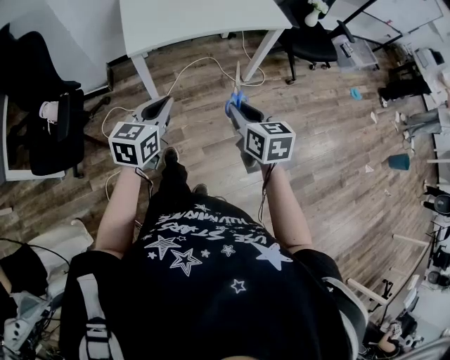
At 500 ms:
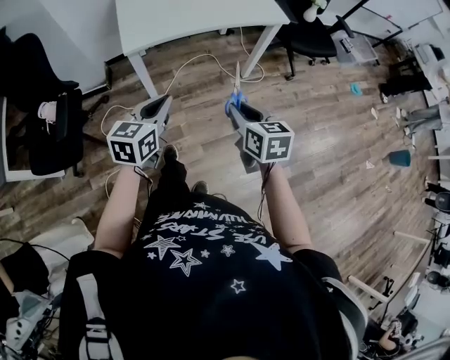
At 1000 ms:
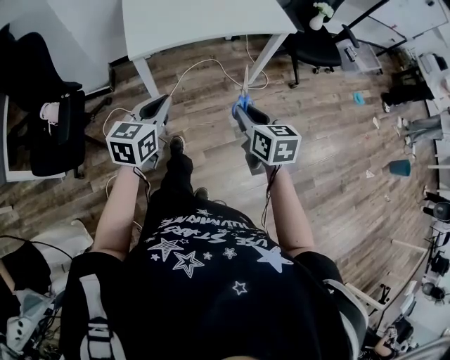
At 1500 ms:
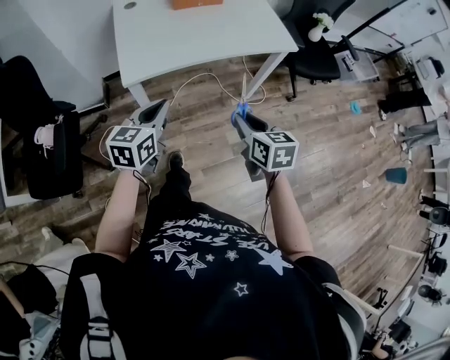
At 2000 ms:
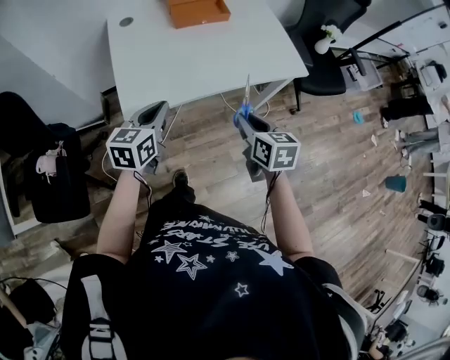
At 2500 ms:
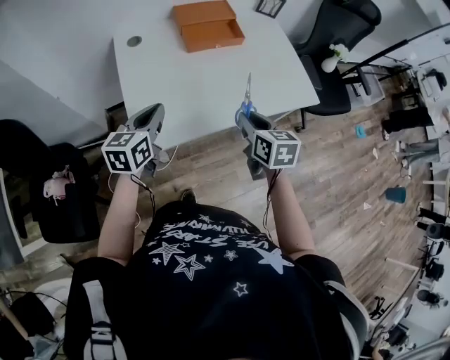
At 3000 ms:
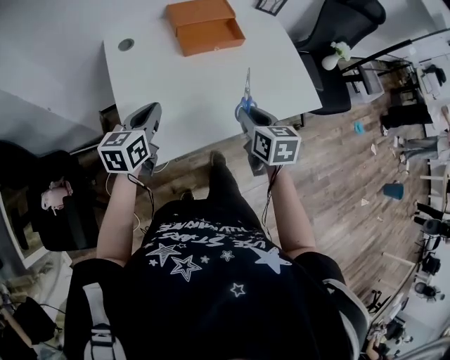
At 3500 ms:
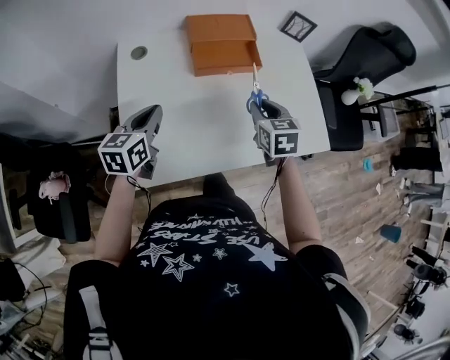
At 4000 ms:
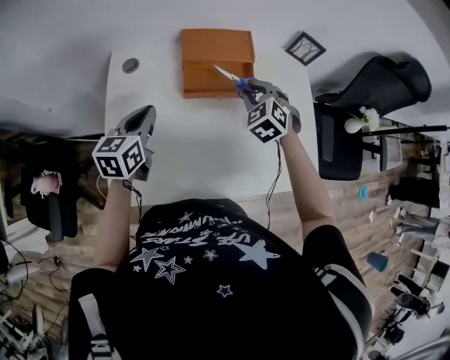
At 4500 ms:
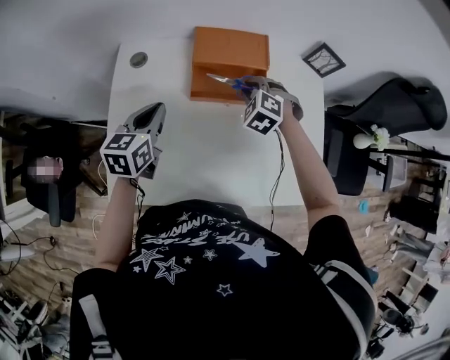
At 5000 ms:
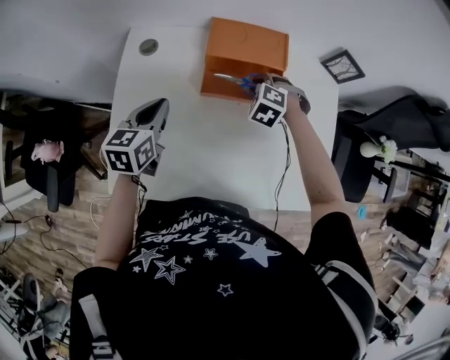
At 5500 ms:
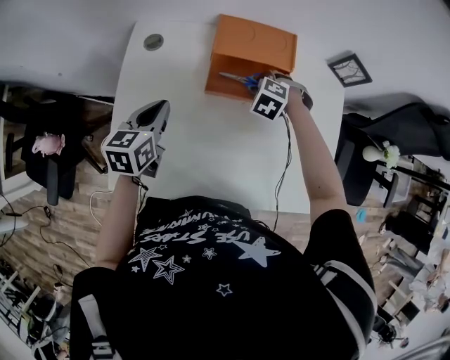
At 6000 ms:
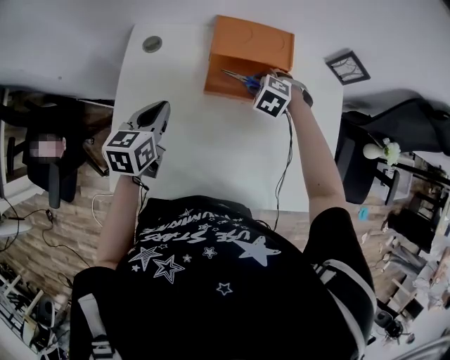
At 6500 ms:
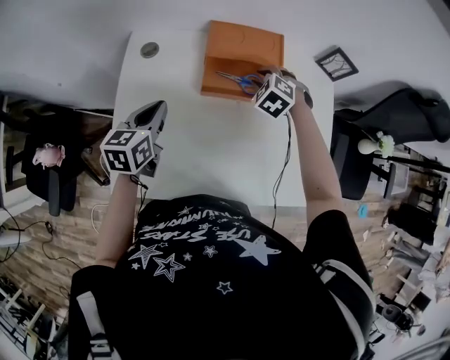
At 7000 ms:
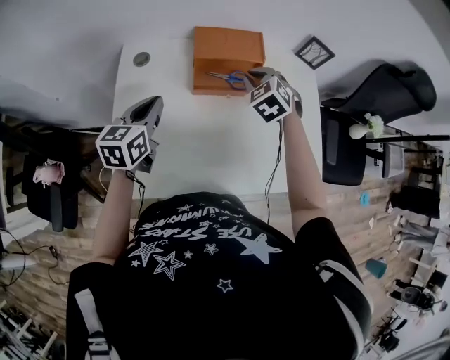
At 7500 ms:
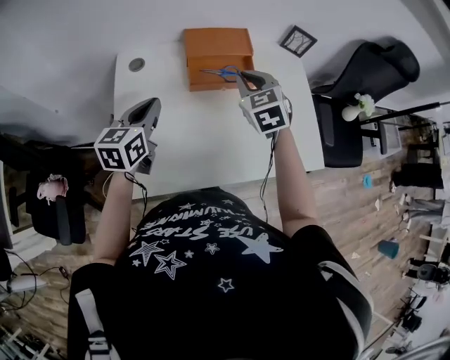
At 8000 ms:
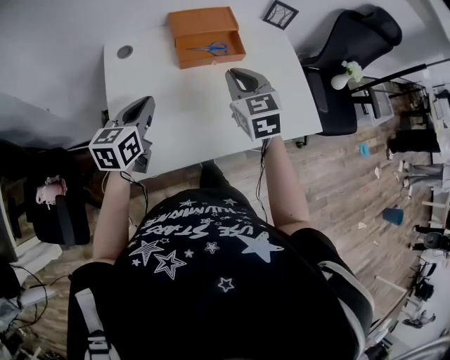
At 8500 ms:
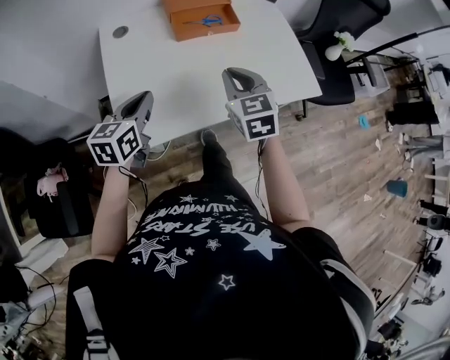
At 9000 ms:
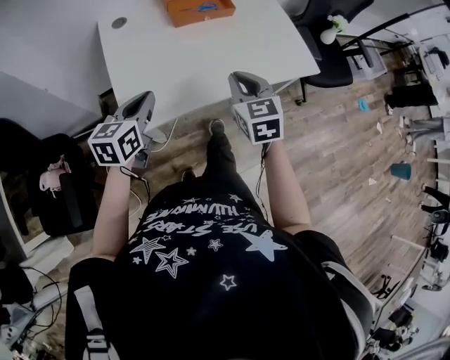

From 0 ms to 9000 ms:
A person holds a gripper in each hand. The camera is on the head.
From 0 ms to 2000 ms: The two grippers go about 35 cm forward.
From 2000 ms to 4500 ms: The pair of grippers is taken forward, approximately 50 cm. The left gripper swivels approximately 20 degrees; the right gripper rotates around the line of its fingers by approximately 80 degrees, counterclockwise from behind.
From 4500 ms to 7000 ms: The left gripper changes place by roughly 5 cm. Meanwhile the right gripper shifts roughly 10 cm upward, and changes its angle by approximately 20 degrees.
From 7000 ms to 9000 ms: Both grippers move backward, roughly 35 cm. The right gripper swivels roughly 40 degrees.

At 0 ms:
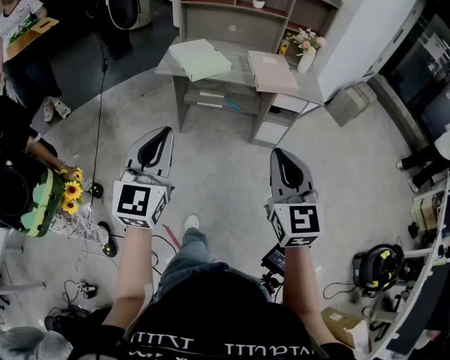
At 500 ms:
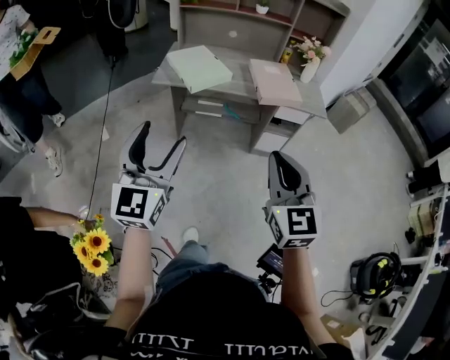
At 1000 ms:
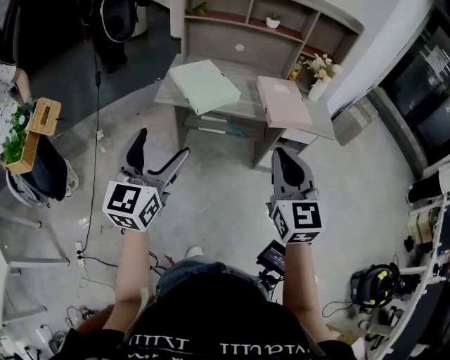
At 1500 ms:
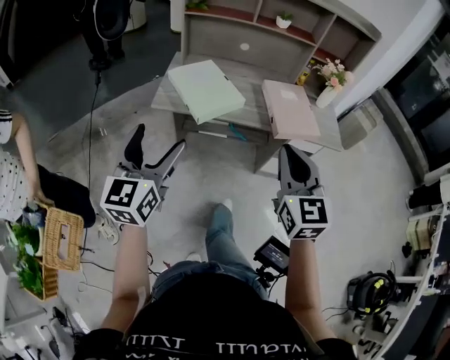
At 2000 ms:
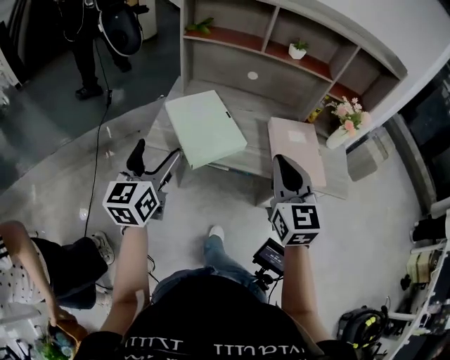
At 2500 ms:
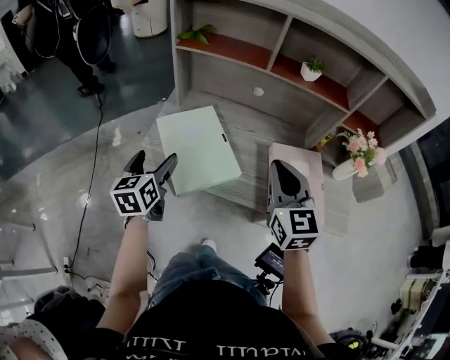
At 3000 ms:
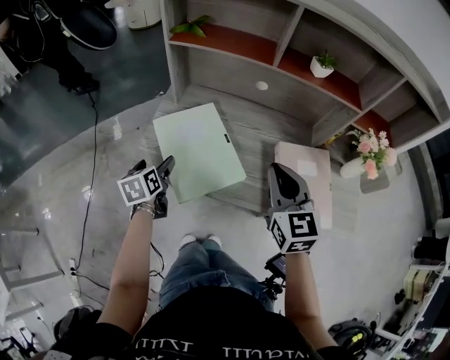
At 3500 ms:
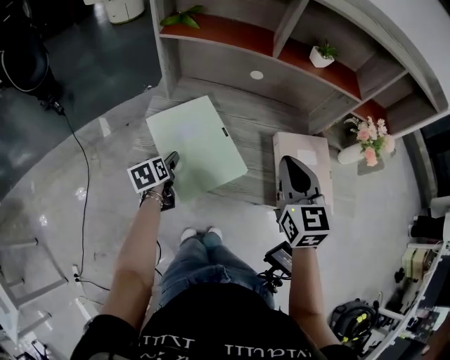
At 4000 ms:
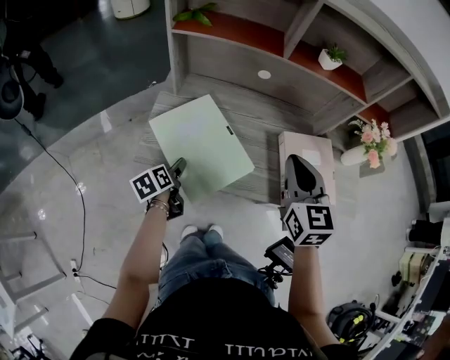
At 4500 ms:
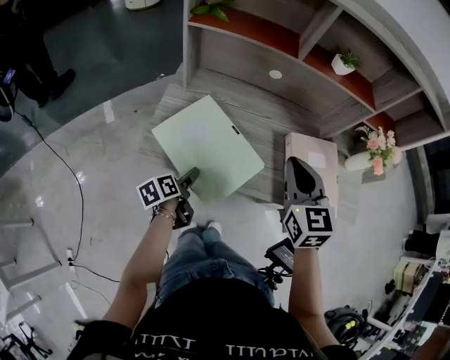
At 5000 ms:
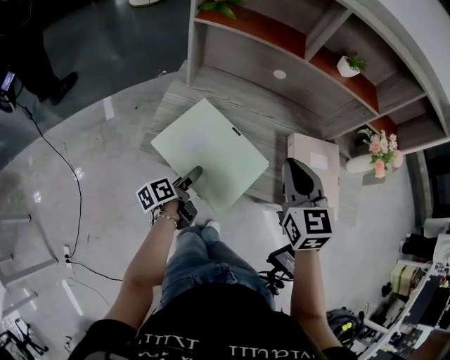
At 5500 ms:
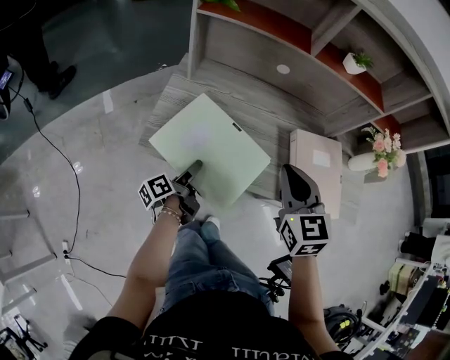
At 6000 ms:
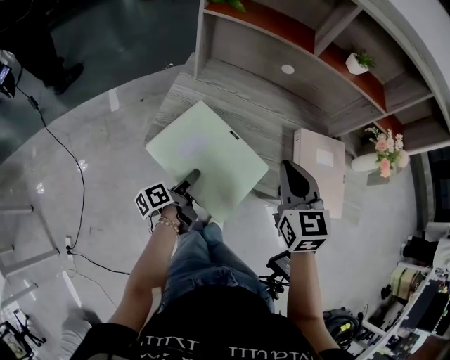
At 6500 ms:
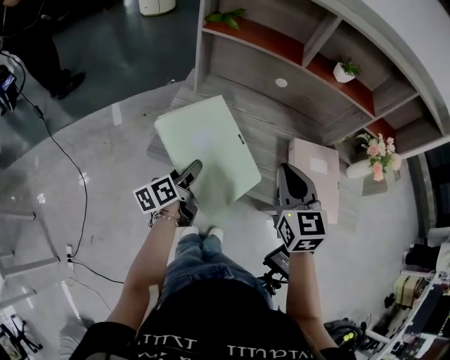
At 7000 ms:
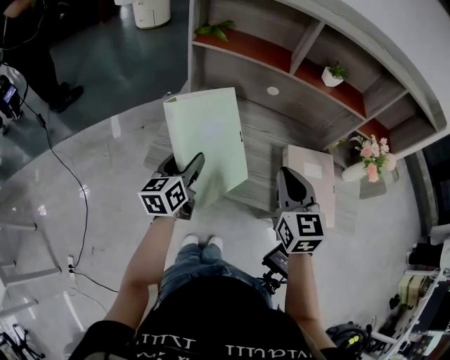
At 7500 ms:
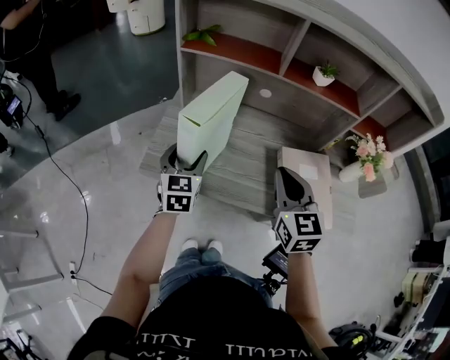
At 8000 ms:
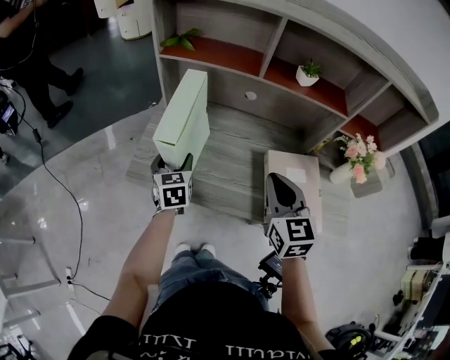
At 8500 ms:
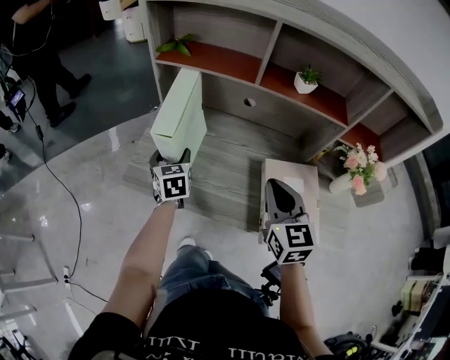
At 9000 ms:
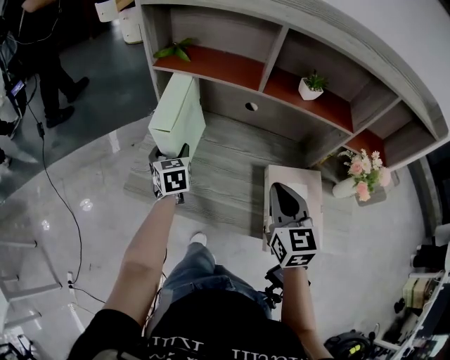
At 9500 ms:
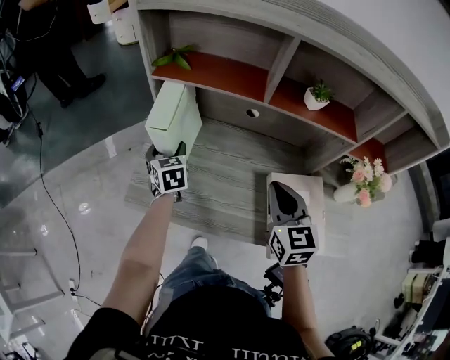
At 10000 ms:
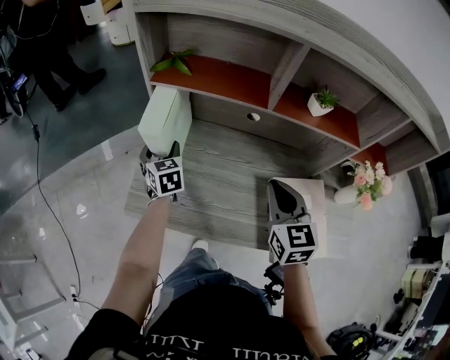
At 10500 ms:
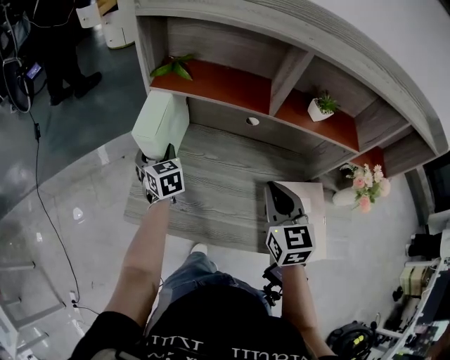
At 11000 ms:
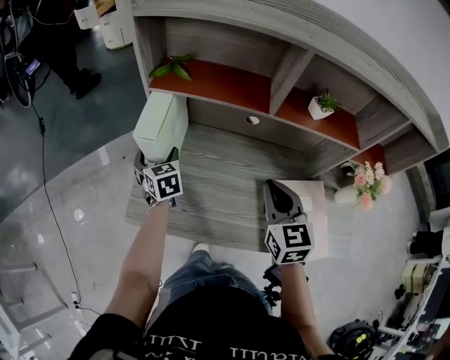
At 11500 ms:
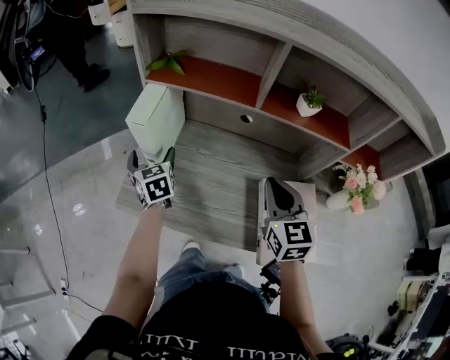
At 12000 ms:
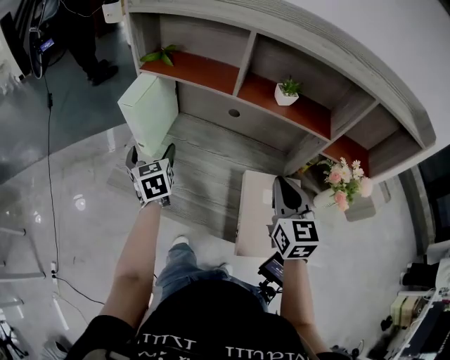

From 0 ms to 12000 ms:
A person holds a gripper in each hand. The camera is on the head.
From 0 ms to 2000 ms: The two grippers travel together, forward, approximately 50 cm. The left gripper turns by some 20 degrees, and opens.
From 2000 ms to 4000 ms: The right gripper moves forward, about 20 cm, while the left gripper is displaced downward and forward by about 35 cm, and points its fingers roughly 40 degrees further downward.
From 4000 ms to 6000 ms: The left gripper heads backward, covering roughly 10 cm, and rotates about 40 degrees; the right gripper heads to the left, covering about 5 cm.
From 6000 ms to 8000 ms: The right gripper shifts some 10 cm to the right. Meanwhile the left gripper travels forward and upward by roughly 20 cm, and rotates around the line of its fingers by about 70 degrees, clockwise from behind.
From 8000 ms to 10000 ms: The left gripper goes approximately 15 cm forward, while the right gripper shifts about 10 cm forward.
From 10000 ms to 12000 ms: The right gripper heads to the right and backward, covering some 15 cm; the left gripper shifts some 15 cm backward and upward.

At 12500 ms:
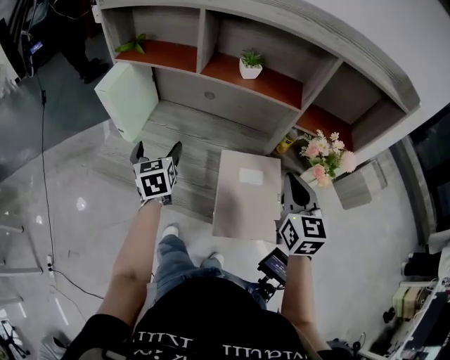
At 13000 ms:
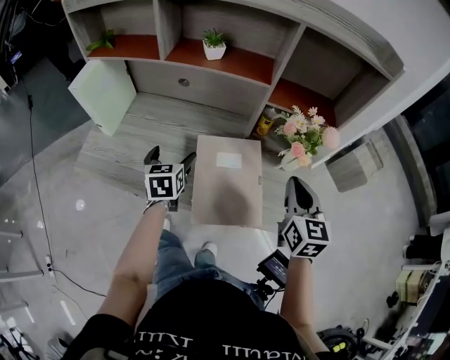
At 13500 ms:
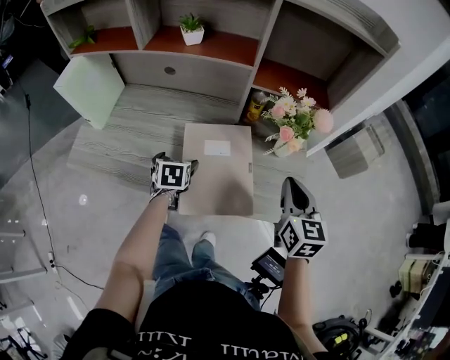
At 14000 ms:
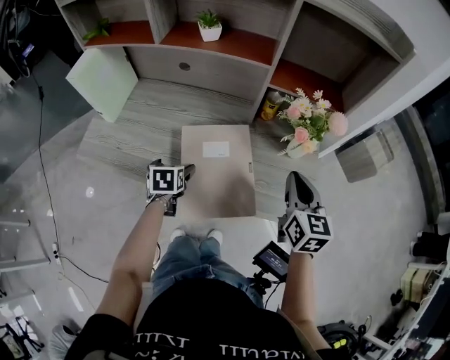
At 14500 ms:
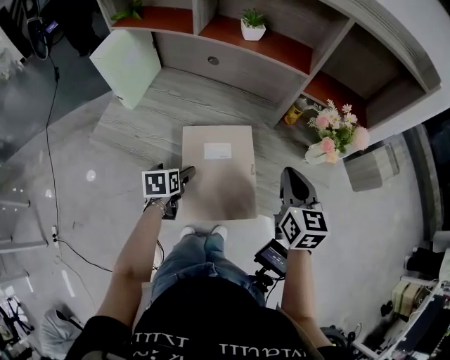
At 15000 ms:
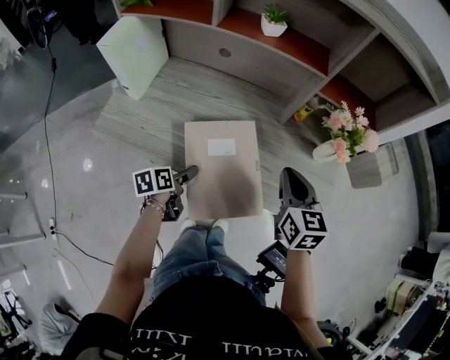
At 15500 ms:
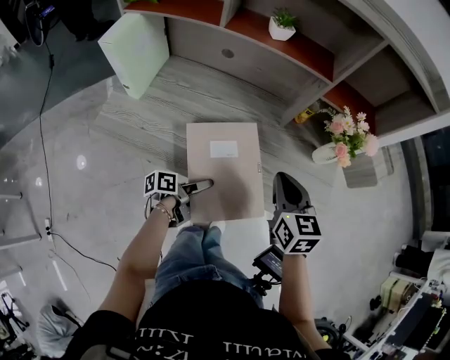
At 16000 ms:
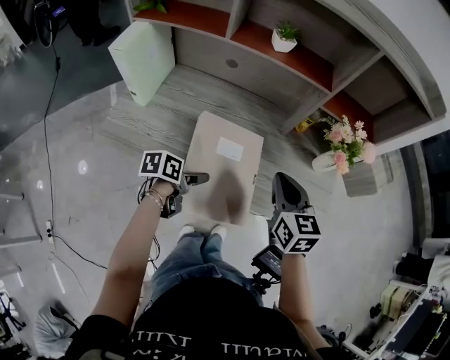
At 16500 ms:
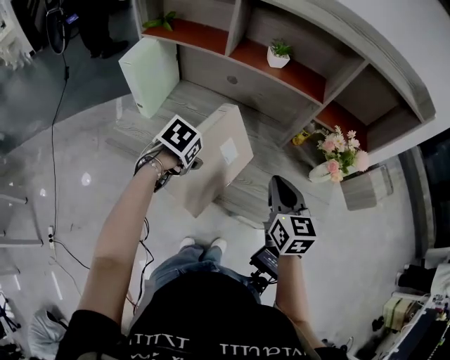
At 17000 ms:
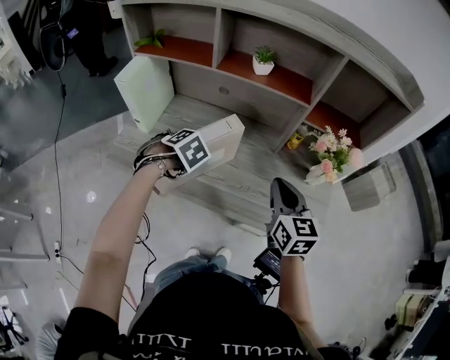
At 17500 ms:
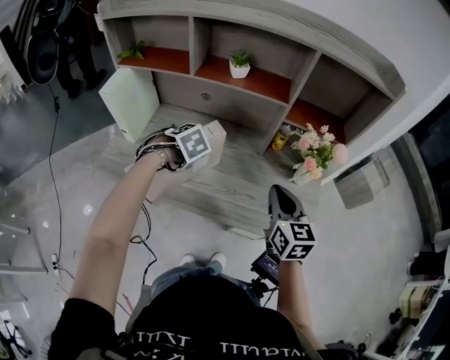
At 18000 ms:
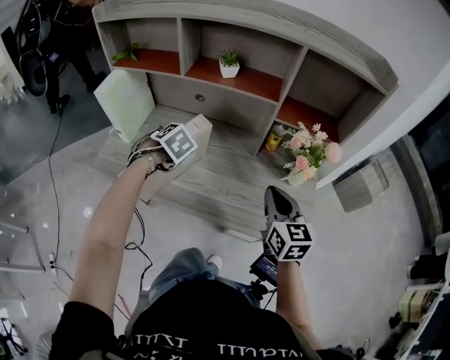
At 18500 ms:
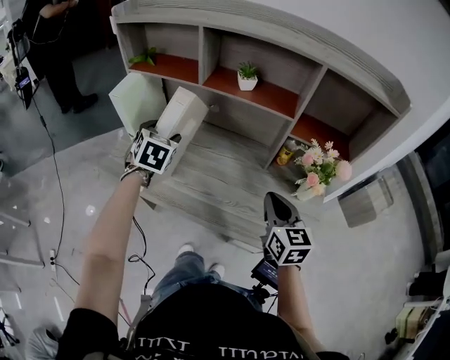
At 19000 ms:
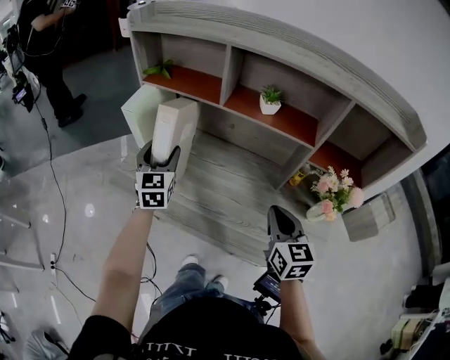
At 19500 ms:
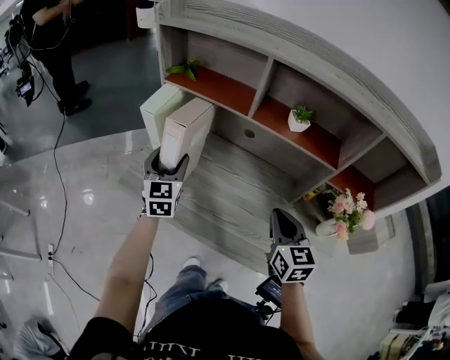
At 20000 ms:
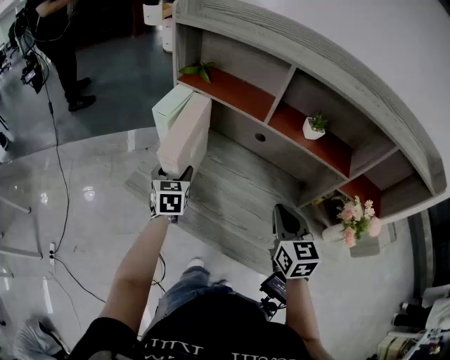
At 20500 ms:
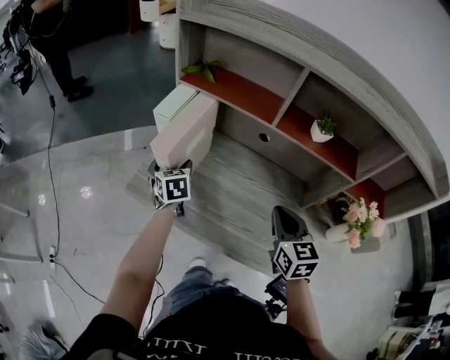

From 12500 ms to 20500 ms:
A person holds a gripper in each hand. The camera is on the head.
From 12500 ms to 14500 ms: The left gripper shifts some 20 cm downward and backward, reaches roughly 20 cm to the right, then returns, and changes its angle by about 30 degrees, while the right gripper moves downward, some 5 cm, and reaches approximately 15 cm to the right, then returns.
From 14500 ms to 16500 ms: The right gripper heads to the left, covering some 10 cm; the left gripper goes some 10 cm upward, and changes its angle by some 40 degrees.
From 16500 ms to 18500 ms: The left gripper travels upward by some 10 cm, and points its fingers approximately 30 degrees further upward.
From 18500 ms to 20500 ms: The right gripper moves to the left and forward, some 20 cm. Meanwhile the left gripper is displaced to the left, downward and forward by about 25 cm, and rotates approximately 40 degrees.
